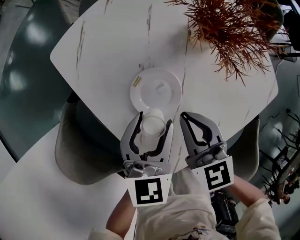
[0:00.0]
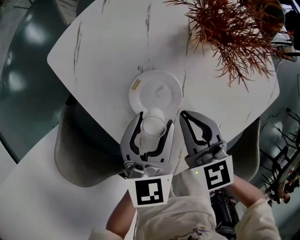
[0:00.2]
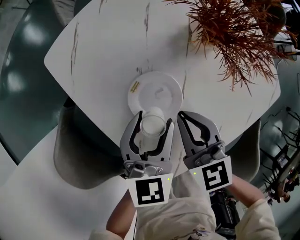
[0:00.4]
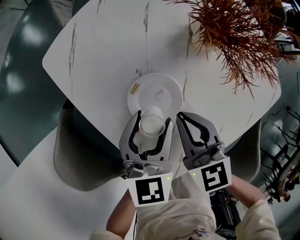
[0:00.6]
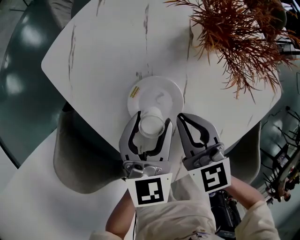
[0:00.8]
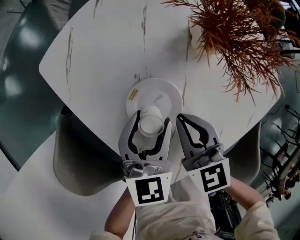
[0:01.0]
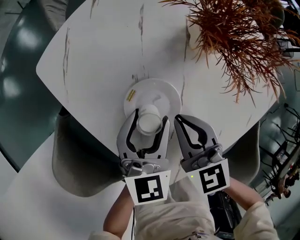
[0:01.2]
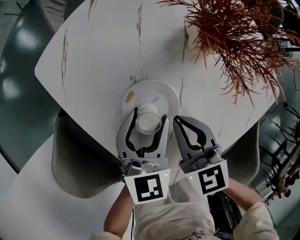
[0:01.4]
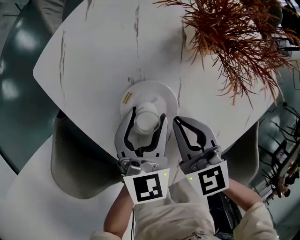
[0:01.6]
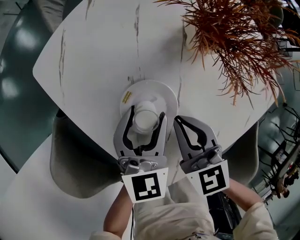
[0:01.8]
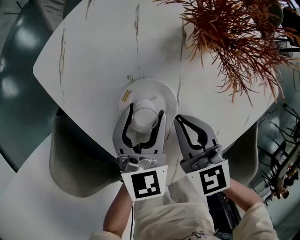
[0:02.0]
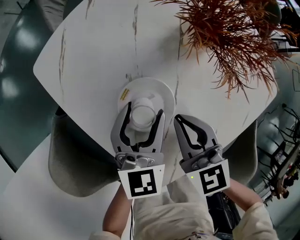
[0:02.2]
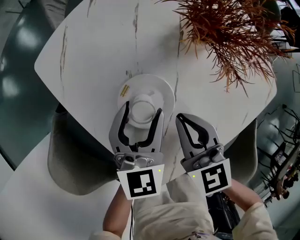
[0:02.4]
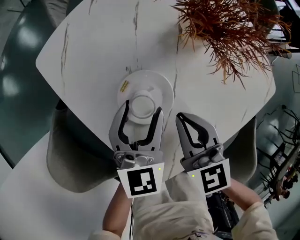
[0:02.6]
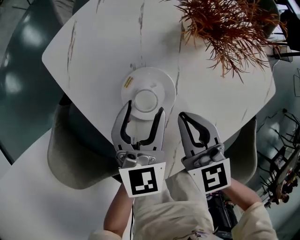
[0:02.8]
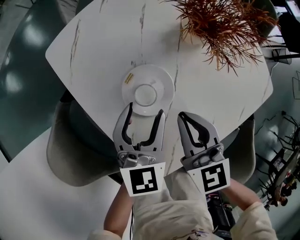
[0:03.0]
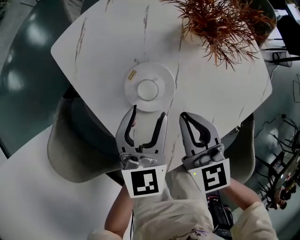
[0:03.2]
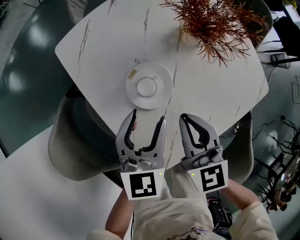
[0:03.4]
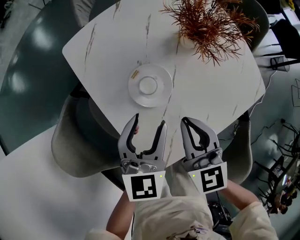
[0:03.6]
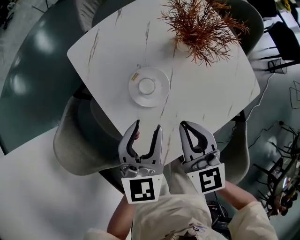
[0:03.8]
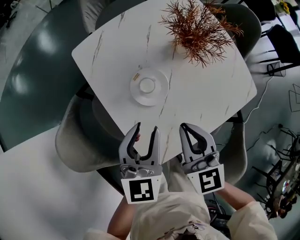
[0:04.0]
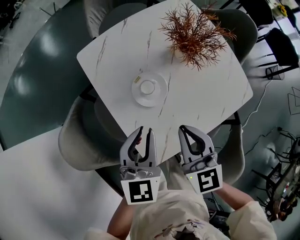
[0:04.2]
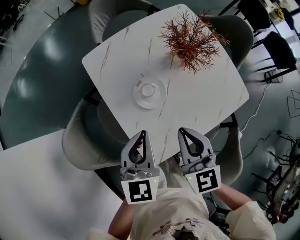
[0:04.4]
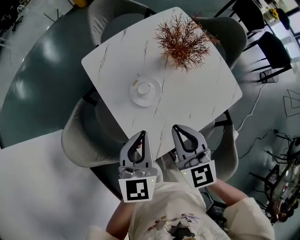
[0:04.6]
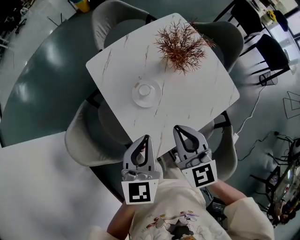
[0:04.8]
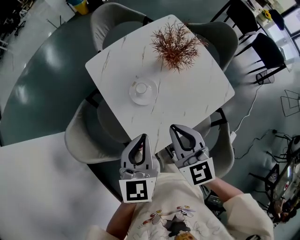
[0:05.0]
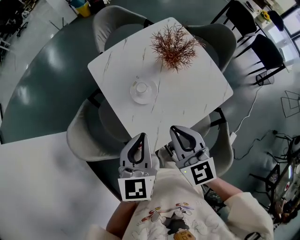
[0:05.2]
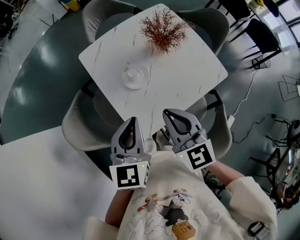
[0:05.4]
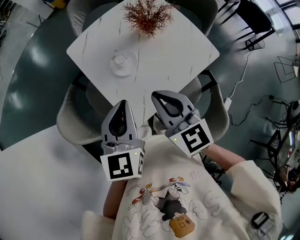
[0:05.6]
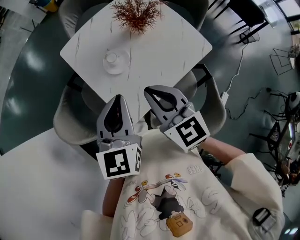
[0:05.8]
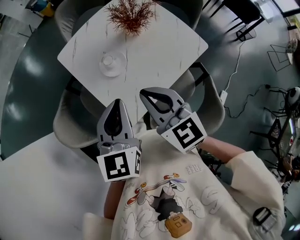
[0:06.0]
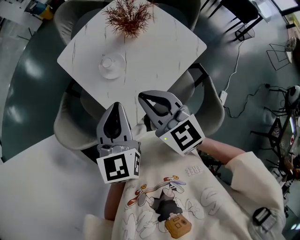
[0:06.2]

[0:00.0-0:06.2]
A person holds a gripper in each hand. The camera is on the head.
0:00.0 to 0:01.6: The left gripper travels forward by roughly 5 cm.
0:01.6 to 0:03.2: The left gripper moves backward, some 5 cm. Meanwhile the right gripper moves upward, approximately 5 cm.
0:03.2 to 0:04.6: The two grippers go some 20 cm upward and backward. The left gripper closes its fingers.
0:04.6 to 0:06.2: The right gripper goes some 10 cm backward and upward. Meanwhile the left gripper shifts roughly 10 cm upward and backward.

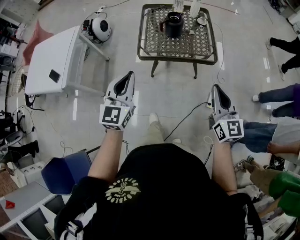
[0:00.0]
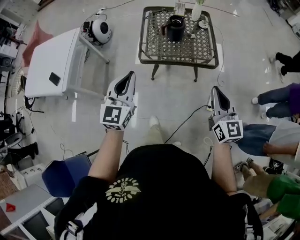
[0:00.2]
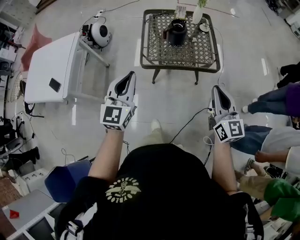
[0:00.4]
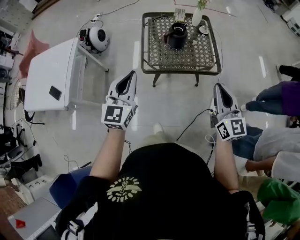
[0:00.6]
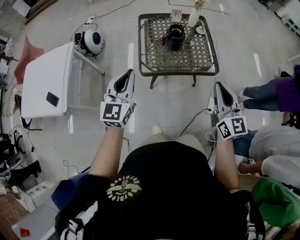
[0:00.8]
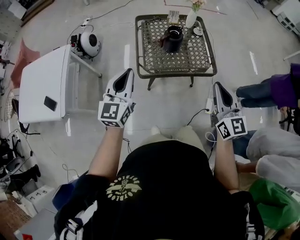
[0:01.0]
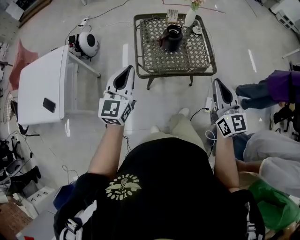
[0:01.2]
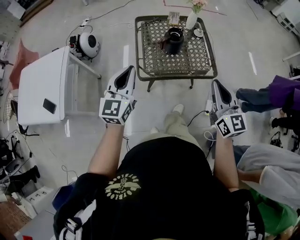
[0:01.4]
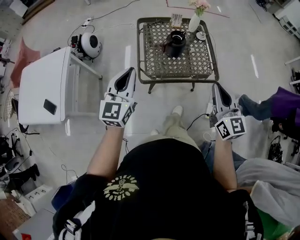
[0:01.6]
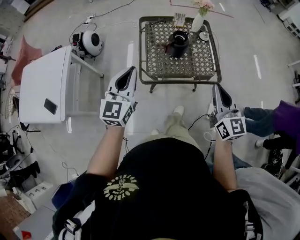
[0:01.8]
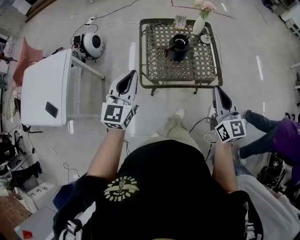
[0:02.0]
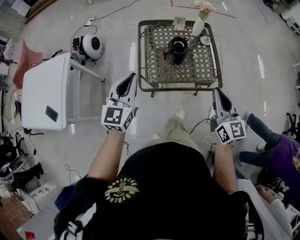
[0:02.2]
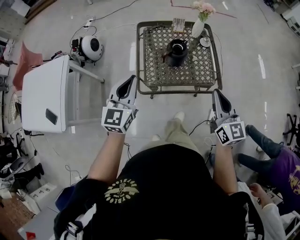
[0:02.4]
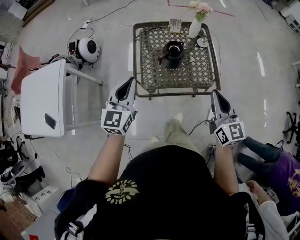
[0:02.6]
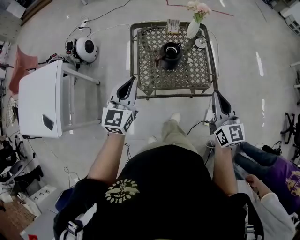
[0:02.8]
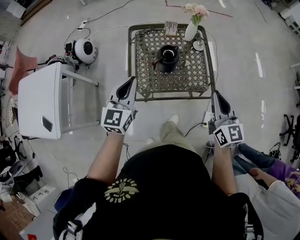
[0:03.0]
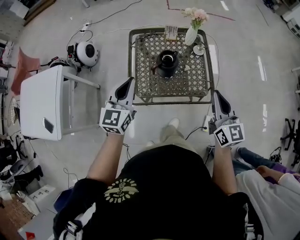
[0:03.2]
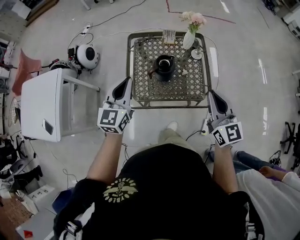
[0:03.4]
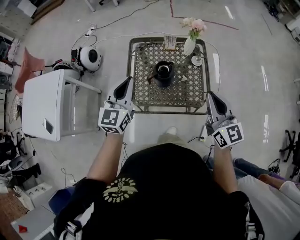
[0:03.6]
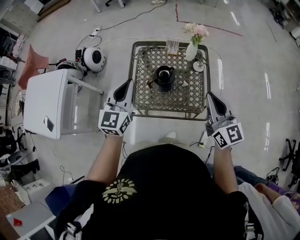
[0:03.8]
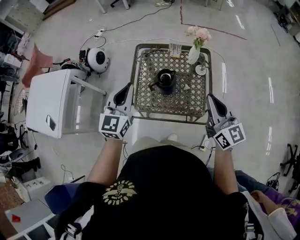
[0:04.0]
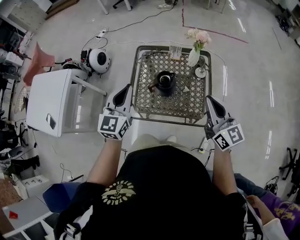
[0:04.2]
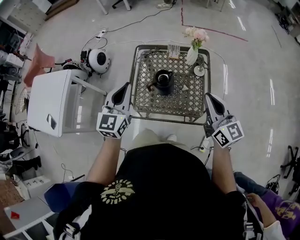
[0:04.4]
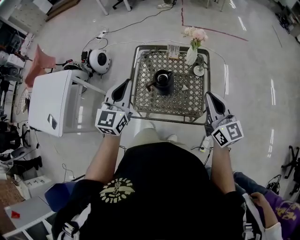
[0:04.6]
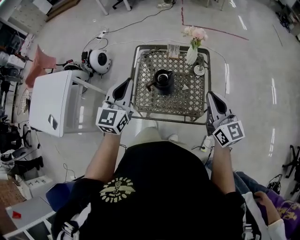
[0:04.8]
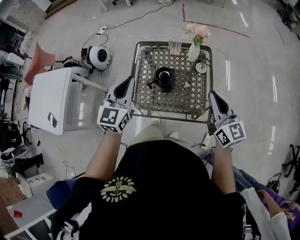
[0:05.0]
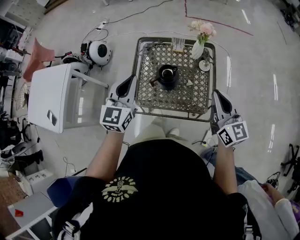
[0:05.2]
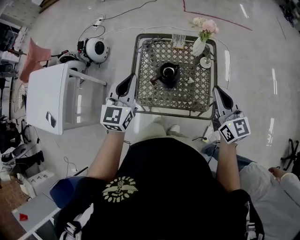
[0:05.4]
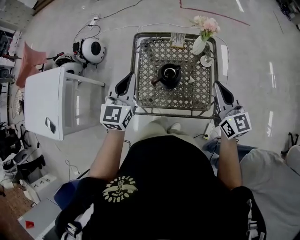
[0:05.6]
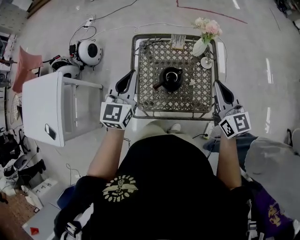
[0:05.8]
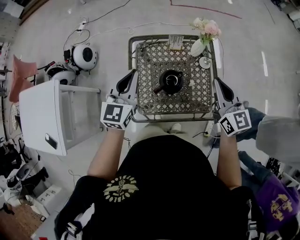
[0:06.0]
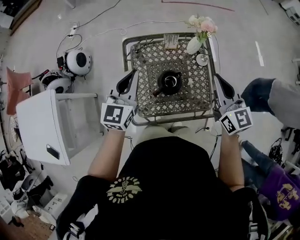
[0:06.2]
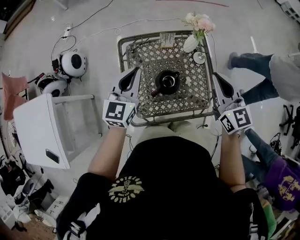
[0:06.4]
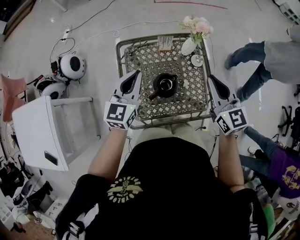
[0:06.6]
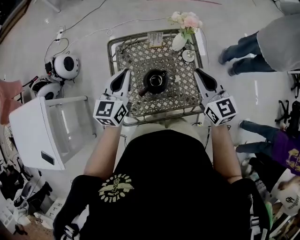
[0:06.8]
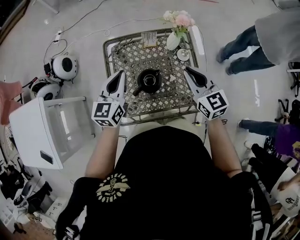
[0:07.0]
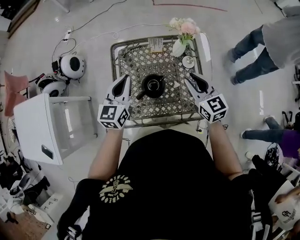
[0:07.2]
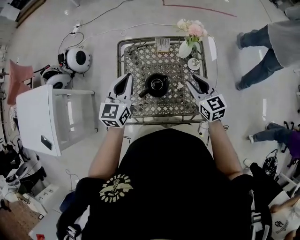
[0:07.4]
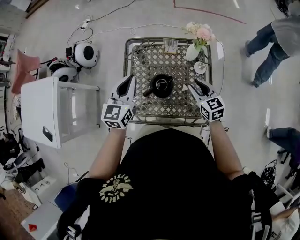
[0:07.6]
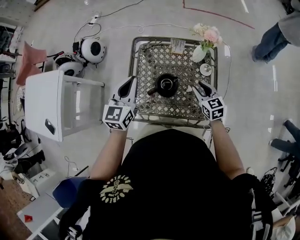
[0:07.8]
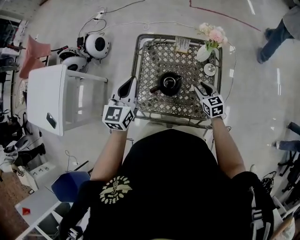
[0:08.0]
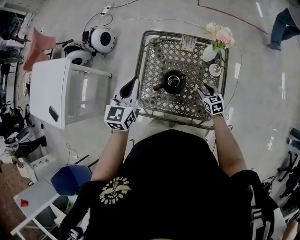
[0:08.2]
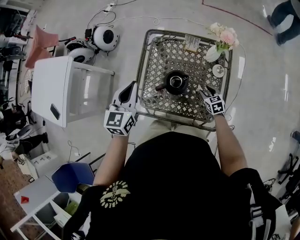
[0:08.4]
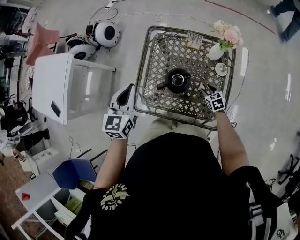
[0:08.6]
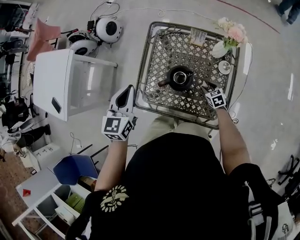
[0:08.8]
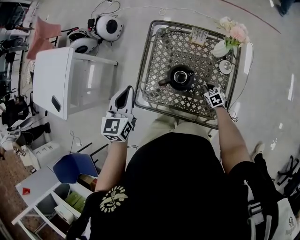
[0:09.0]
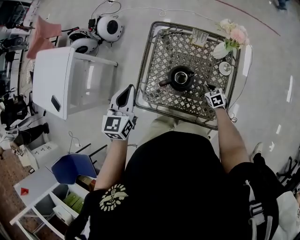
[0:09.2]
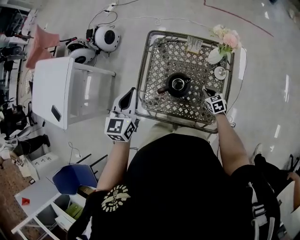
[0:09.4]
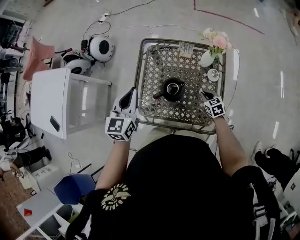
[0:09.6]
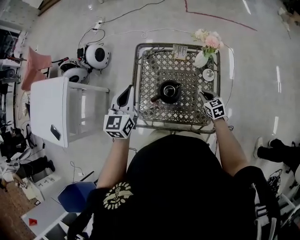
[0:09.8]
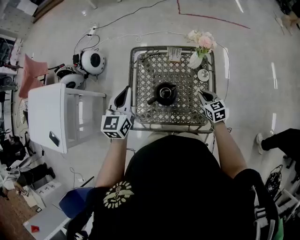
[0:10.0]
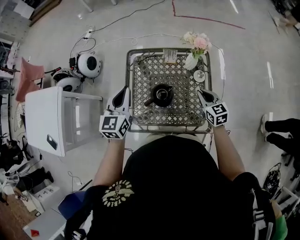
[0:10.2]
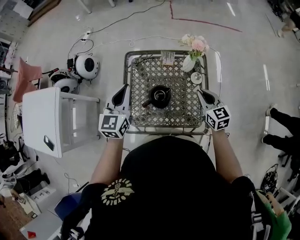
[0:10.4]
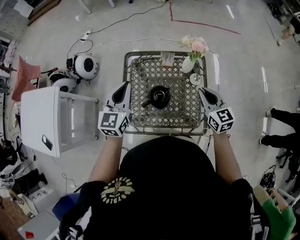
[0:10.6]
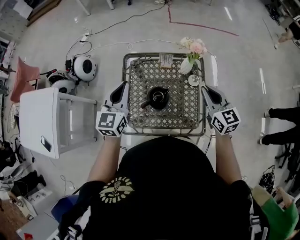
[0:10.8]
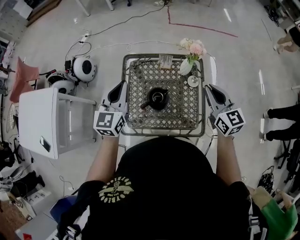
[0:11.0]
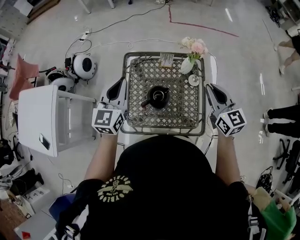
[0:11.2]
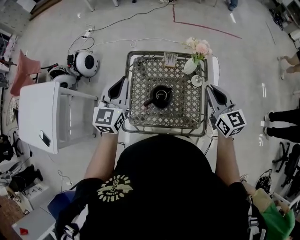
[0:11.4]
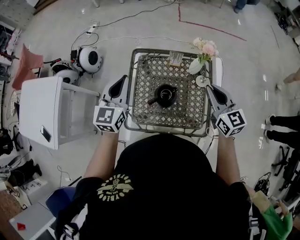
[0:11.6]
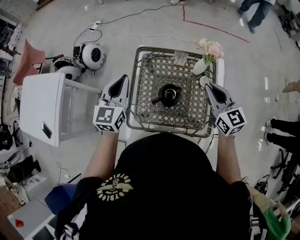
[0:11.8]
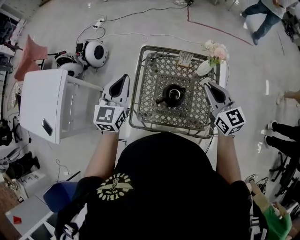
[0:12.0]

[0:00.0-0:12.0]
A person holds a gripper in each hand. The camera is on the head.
0:00.0 to 0:01.6: The two grippers go roughly 20 cm forward and to the left.
0:01.6 to 0:03.0: Both grippers move forward and to the right, about 15 cm.
0:03.0 to 0:04.4: The right gripper is displaced forward and to the right by approximately 10 cm, and changes its angle by about 20 degrees; the left gripper goes some 10 cm to the right, forward and upward.
0:04.4 to 0:06.0: The two grippers go approximately 15 cm forward.
0:06.0 to 0:07.6: The right gripper travels downward by about 15 cm, changes its angle by about 20 degrees, and opens up; the left gripper ends up approximately 5 cm from where it was.
0:07.6 to 0:09.0: The left gripper heads to the left and backward, covering some 10 cm, while the right gripper heads downward, covering roughly 25 cm, and tilts its fingers roughly 30 degrees downward.
0:09.0 to 0:10.4: The right gripper travels upward by approximately 30 cm, and angles its fingers upward, by about 30 degrees. The left gripper moves to the right, forward and upward, some 10 cm.
0:10.4 to 0:12.0: The right gripper heads upward and to the left, covering approximately 15 cm; the left gripper moves to the left, some 10 cm.

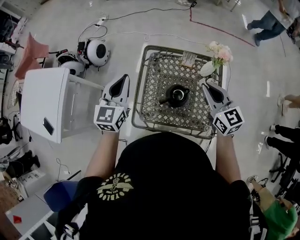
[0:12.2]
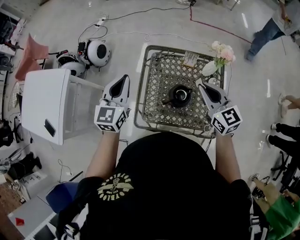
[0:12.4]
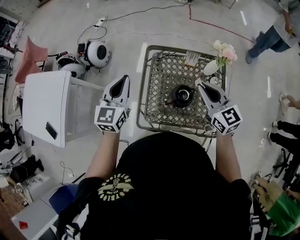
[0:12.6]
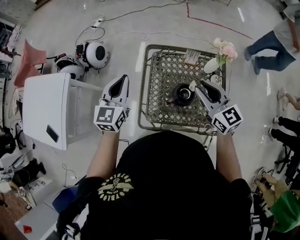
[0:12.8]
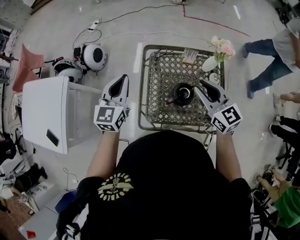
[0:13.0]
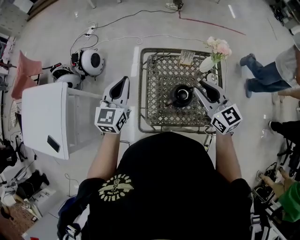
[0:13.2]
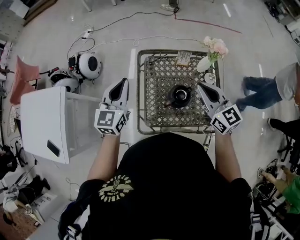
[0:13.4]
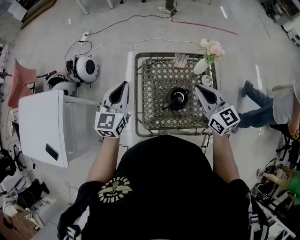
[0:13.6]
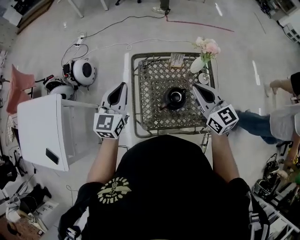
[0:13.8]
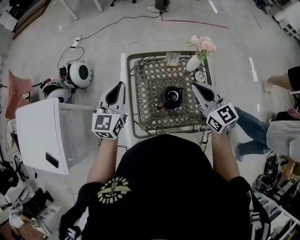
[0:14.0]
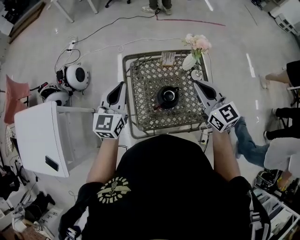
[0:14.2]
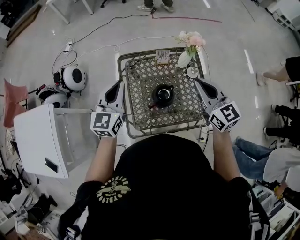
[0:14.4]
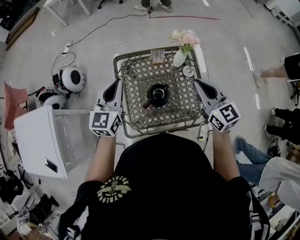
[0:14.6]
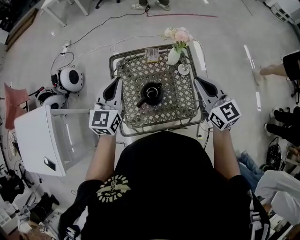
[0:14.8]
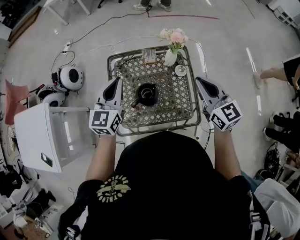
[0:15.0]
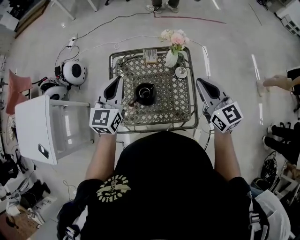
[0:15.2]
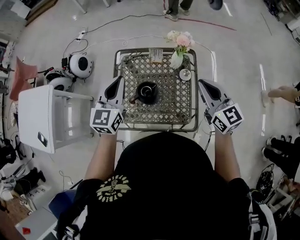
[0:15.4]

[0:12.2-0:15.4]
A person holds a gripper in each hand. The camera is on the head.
0:12.2 to 0:13.8: The right gripper opens and closes again.
0:13.8 to 0:15.4: Both grippers travel together to the right, about 20 cm.

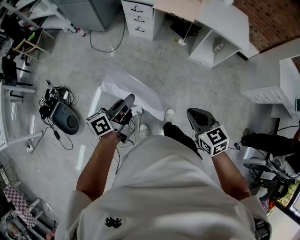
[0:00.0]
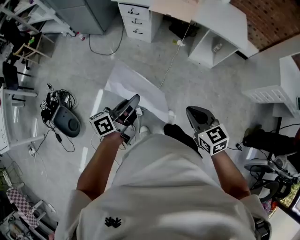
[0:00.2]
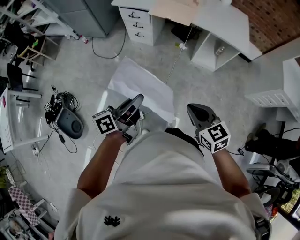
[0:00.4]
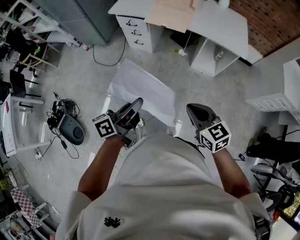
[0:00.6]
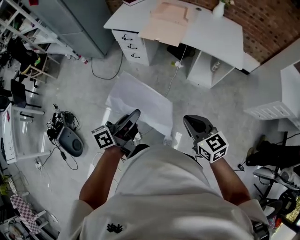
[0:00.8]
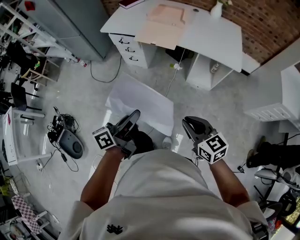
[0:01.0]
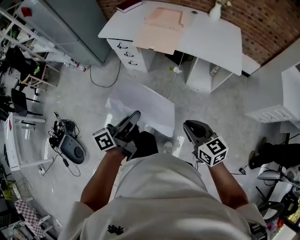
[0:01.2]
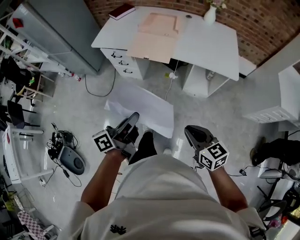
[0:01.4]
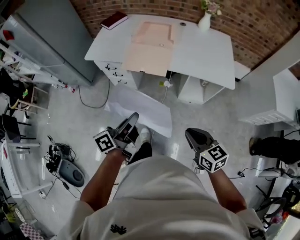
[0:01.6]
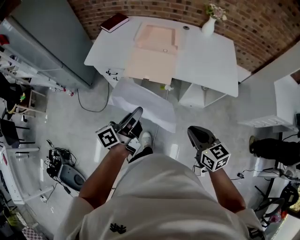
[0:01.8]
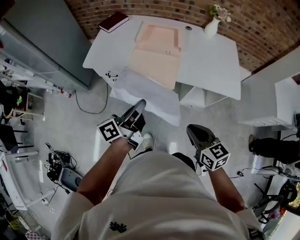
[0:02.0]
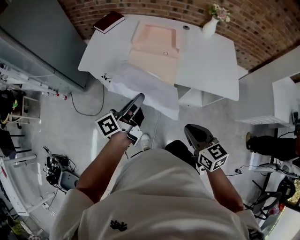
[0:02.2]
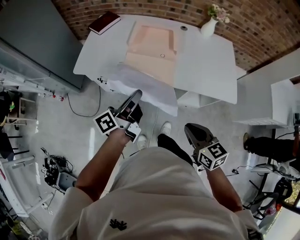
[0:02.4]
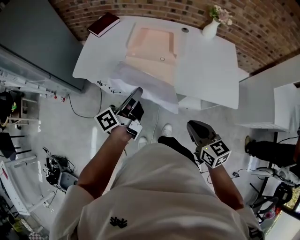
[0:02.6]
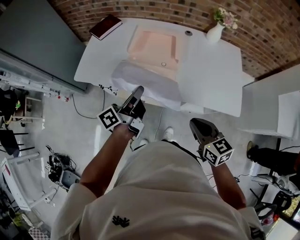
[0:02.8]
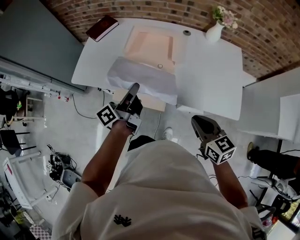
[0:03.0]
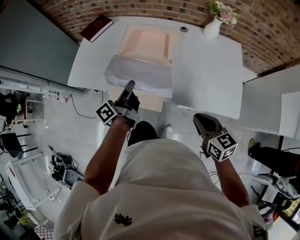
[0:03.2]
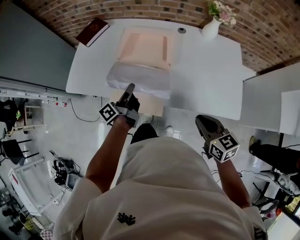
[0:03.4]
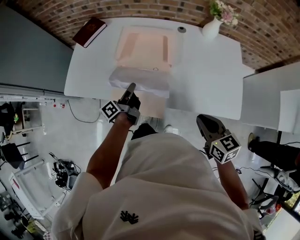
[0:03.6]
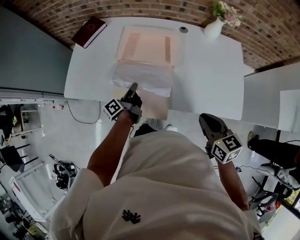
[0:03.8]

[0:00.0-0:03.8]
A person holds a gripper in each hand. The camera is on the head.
0:00.0 to 0:01.2: The right gripper shifts about 30 cm forward and to the right; the left gripper travels to the right and forward by roughly 30 cm.
0:01.2 to 0:02.6: Both grippers travel together forward, approximately 40 cm.
0:02.6 to 0:03.8: The right gripper goes about 20 cm forward and to the right. The left gripper heads forward and downward, covering some 30 cm.
